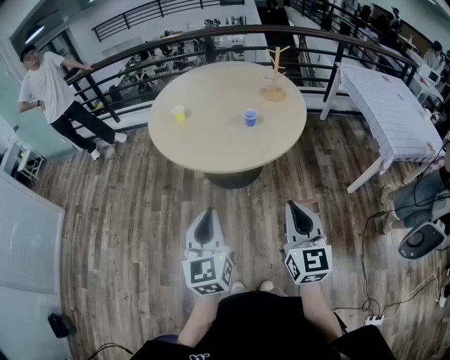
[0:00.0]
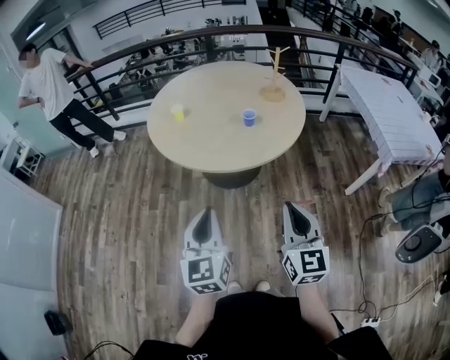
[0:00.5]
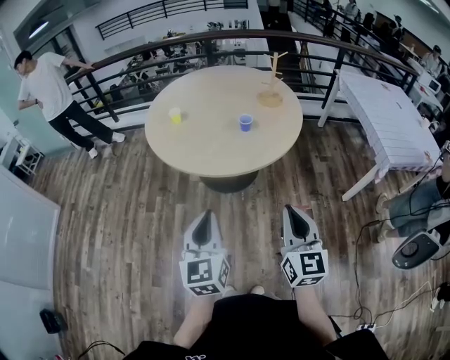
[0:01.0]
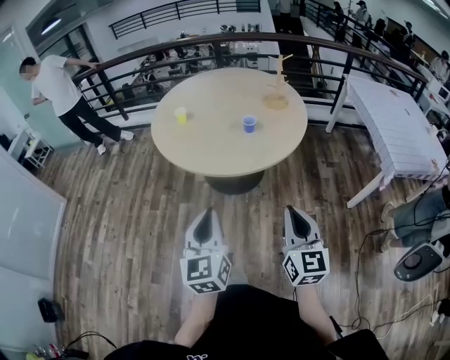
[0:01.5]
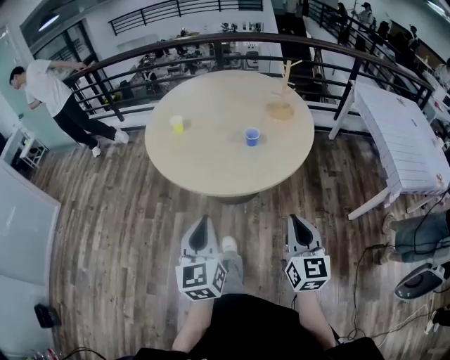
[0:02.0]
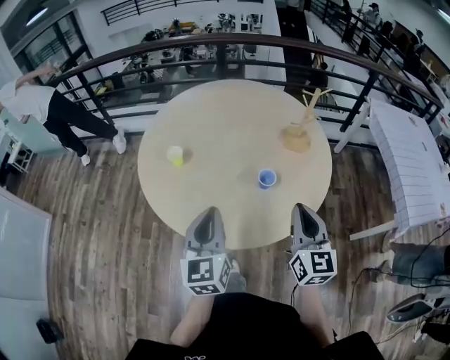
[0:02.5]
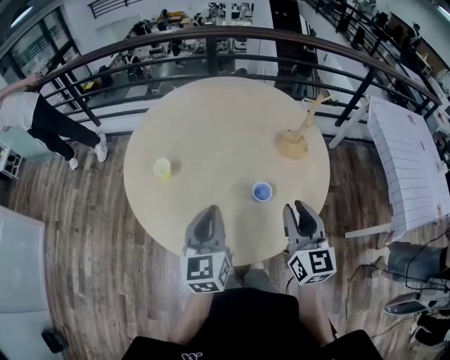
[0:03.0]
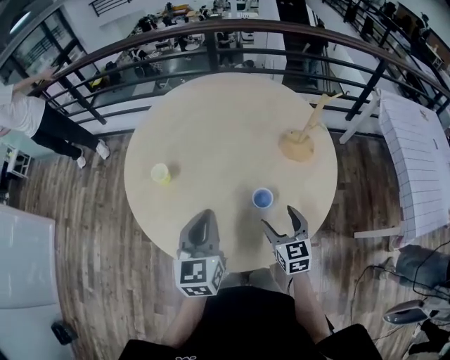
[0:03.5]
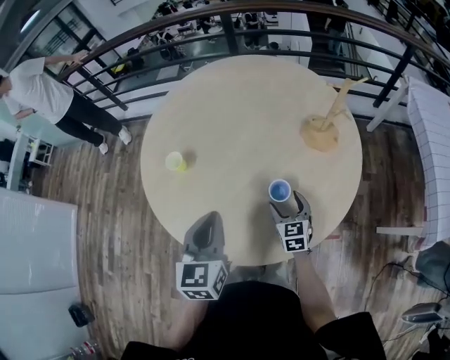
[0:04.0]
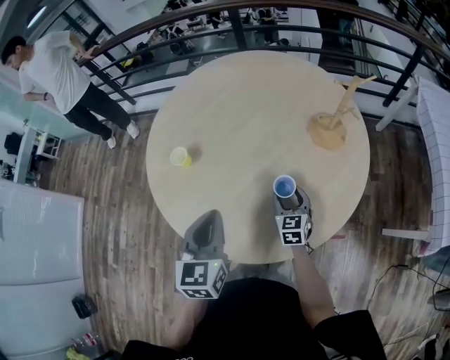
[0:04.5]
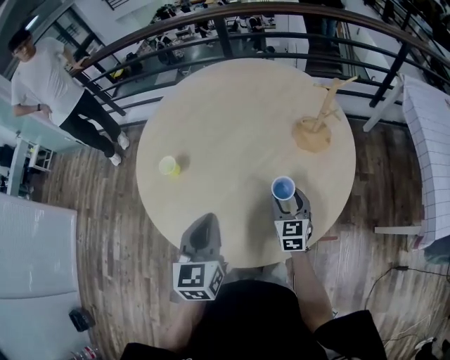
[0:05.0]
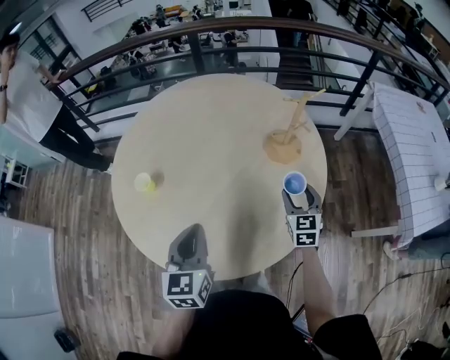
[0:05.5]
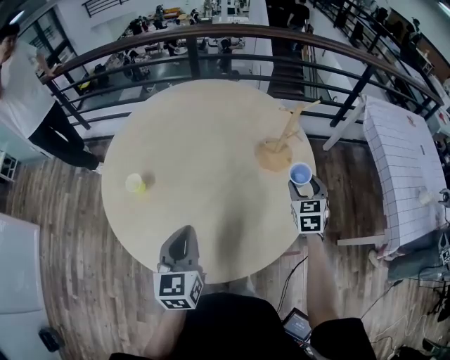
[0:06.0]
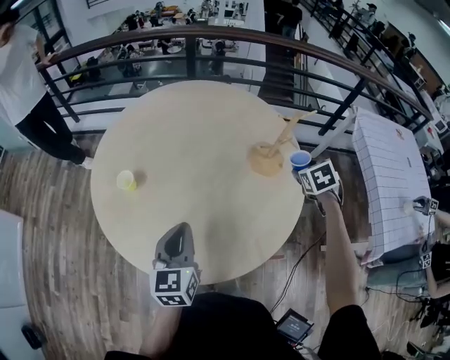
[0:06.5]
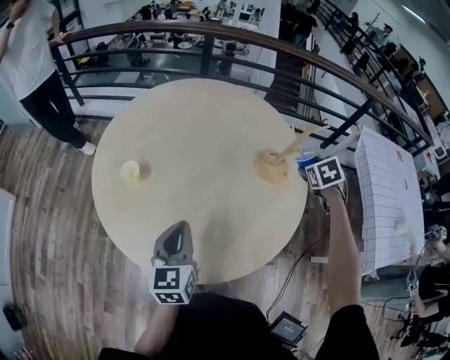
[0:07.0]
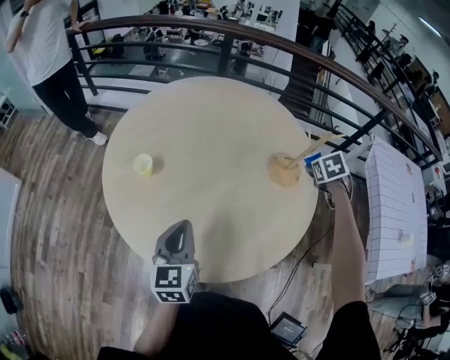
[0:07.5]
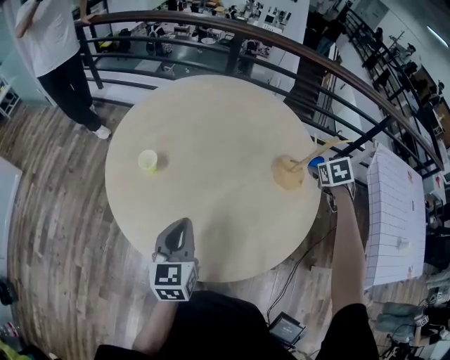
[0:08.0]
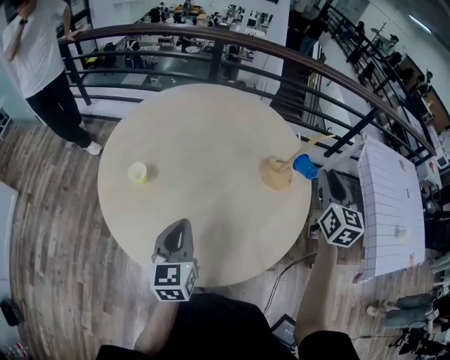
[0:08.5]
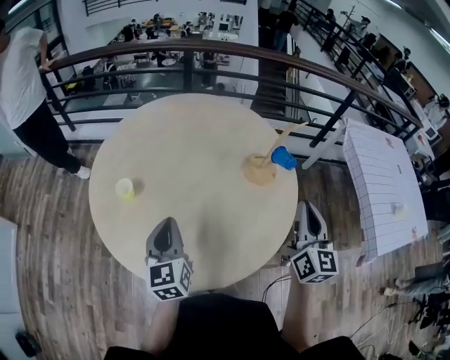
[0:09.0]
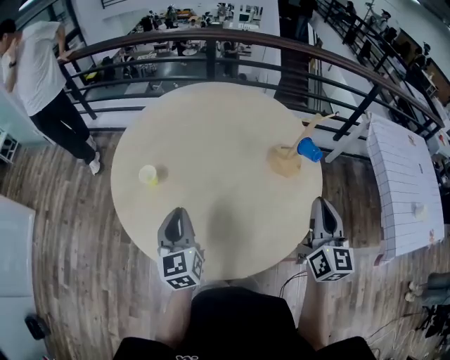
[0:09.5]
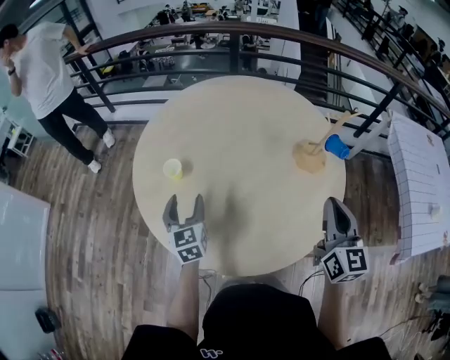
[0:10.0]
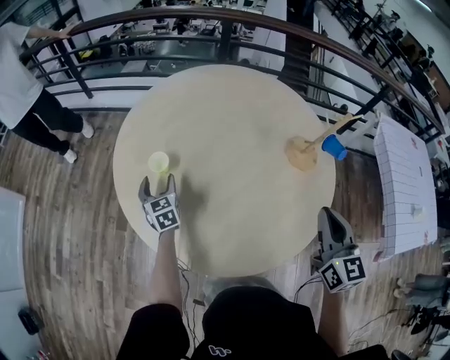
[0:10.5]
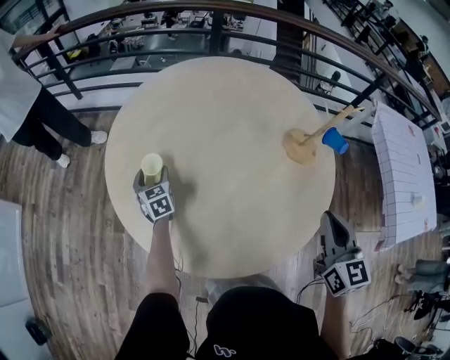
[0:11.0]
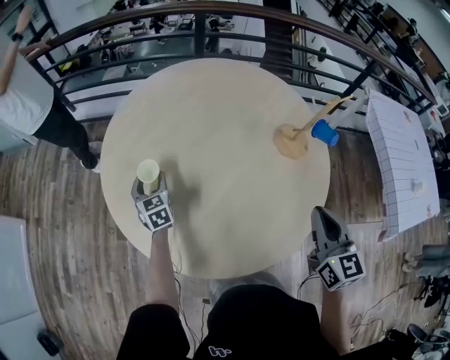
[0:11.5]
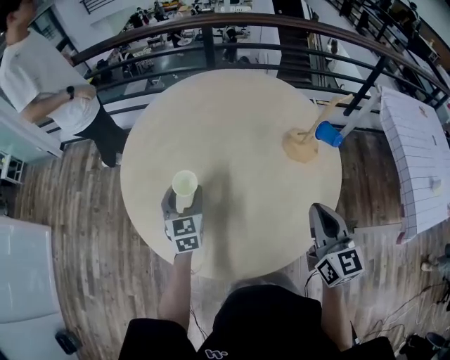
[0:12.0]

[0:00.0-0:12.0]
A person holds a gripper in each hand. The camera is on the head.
0:00.0 to 0:02.0: The right gripper goes about 15 cm forward, to the right and downward, while the left gripper is displaced forward by some 10 cm.
0:02.0 to 0:04.0: The right gripper goes some 50 cm forward and downward, changes its angle by roughly 30 degrees, and opens; the left gripper is displaced forward by about 40 cm.
0:04.0 to 0:06.0: The right gripper shifts roughly 25 cm to the right, upward and forward, and turns by about 20 degrees.
0:06.0 to 0:08.0: The left gripper moves to the left, roughly 5 cm. Meanwhile the right gripper heads forward, covering roughly 15 cm, and rotates approximately 30 degrees.
0:08.0 to 0:10.0: The left gripper is displaced to the left, forward and downward by roughly 15 cm, and opens up. The right gripper goes about 30 cm backward, to the left and upward, tilts its fingers roughly 50 degrees upward, and closes up.
0:10.0 to 0:12.0: The left gripper heads forward, covering about 5 cm.

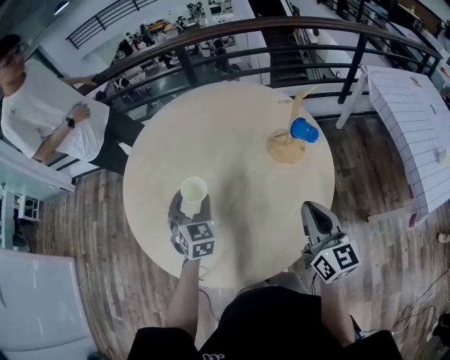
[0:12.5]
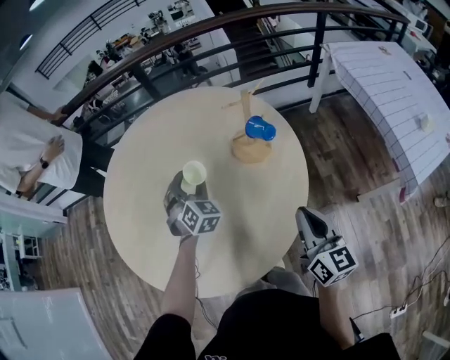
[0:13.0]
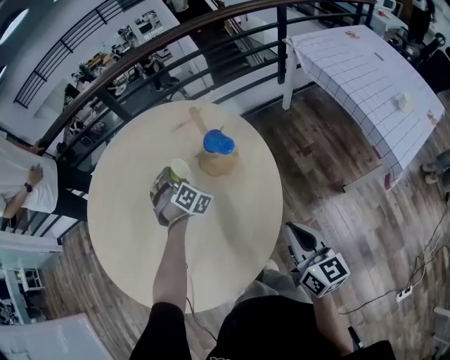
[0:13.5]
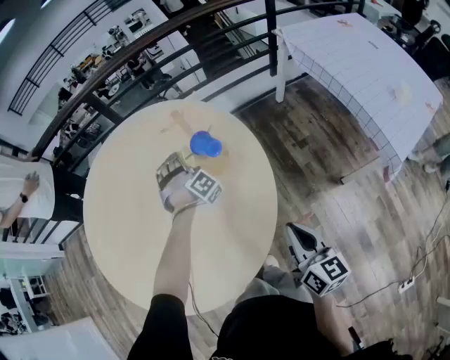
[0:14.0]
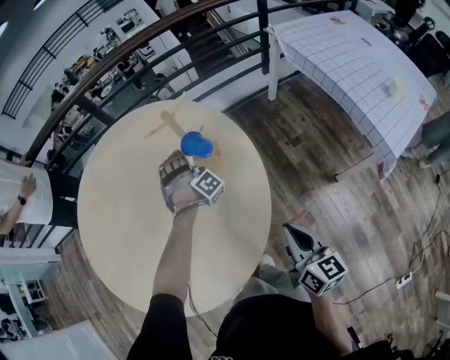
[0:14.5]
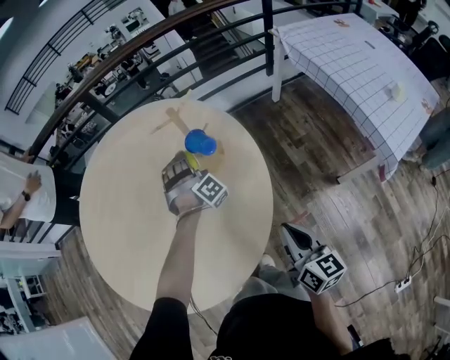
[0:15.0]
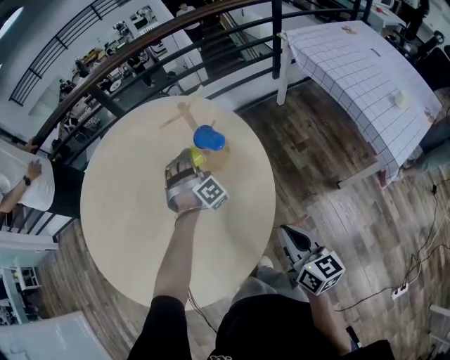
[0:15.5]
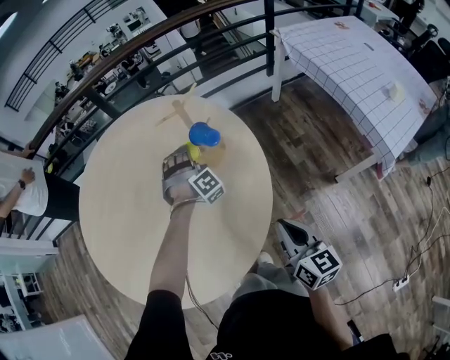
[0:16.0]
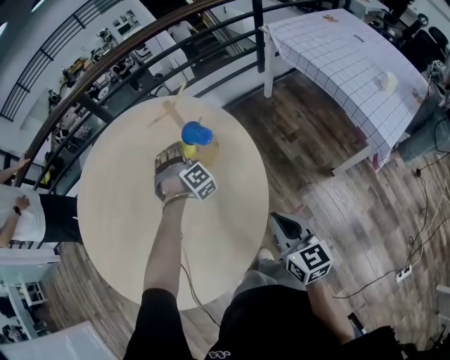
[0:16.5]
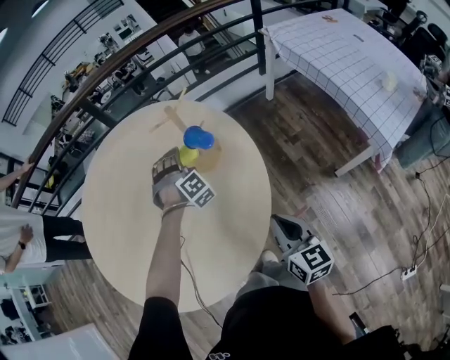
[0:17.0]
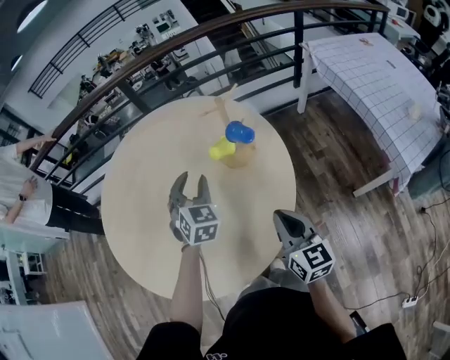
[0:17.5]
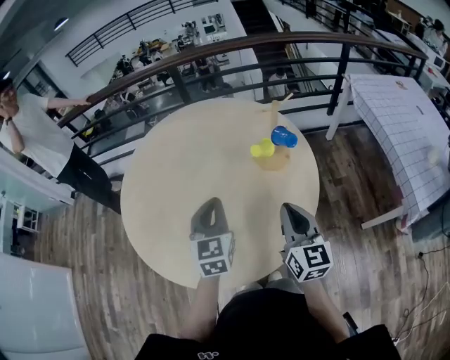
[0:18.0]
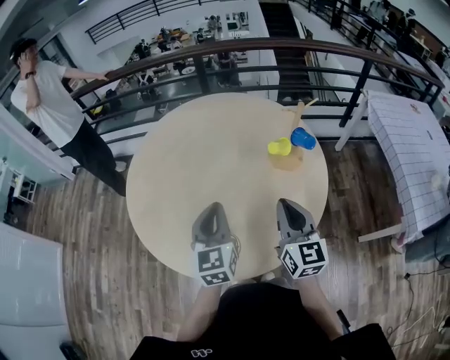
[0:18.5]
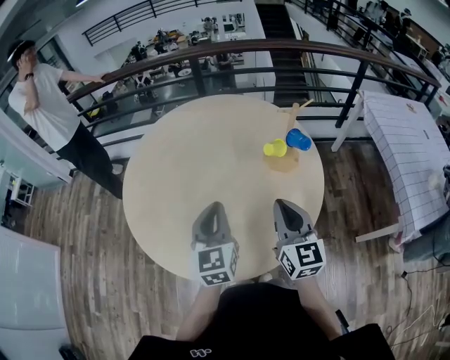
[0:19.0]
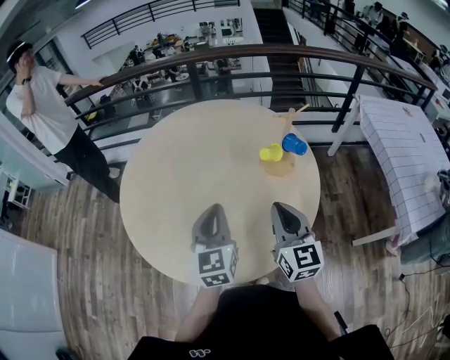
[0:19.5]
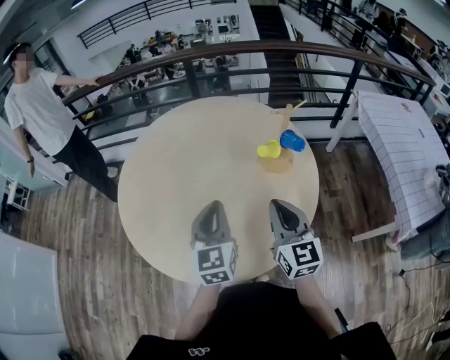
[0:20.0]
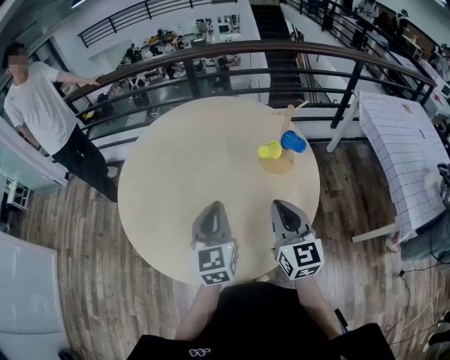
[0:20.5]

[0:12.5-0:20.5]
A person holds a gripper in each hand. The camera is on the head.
0:12.5 to 0:14.5: The left gripper heads to the right and forward, covering approximately 35 cm, and rotates around the line of its fingers by some 80 degrees, clockwise from behind; the right gripper moves to the right, backward and downward, approximately 20 cm, and changes its angle by roughly 20 degrees.
0:14.5 to 0:16.5: The grippers stay close to where they were, moving slightly.
0:16.5 to 0:18.5: The left gripper moves backward, to the left and upward, about 40 cm, rolls counterclockwise, seen from behind, by approximately 100 degrees, and closes. Meanwhile the right gripper heads to the left and upward, covering approximately 20 cm, and swivels about 20 degrees.
0:18.5 to 0:20.5: The grippers make only small movements.

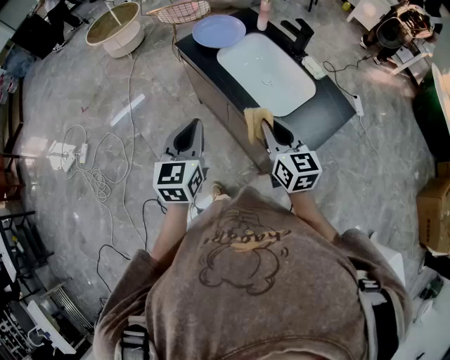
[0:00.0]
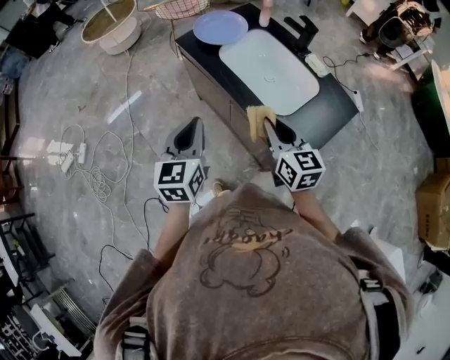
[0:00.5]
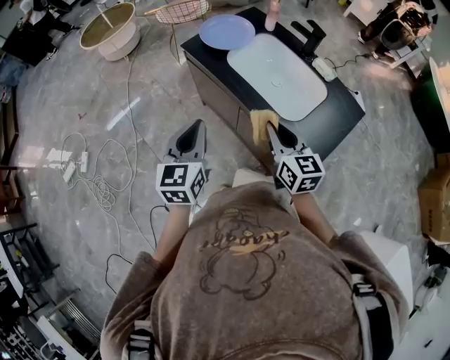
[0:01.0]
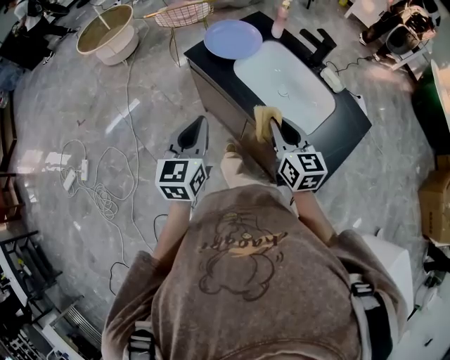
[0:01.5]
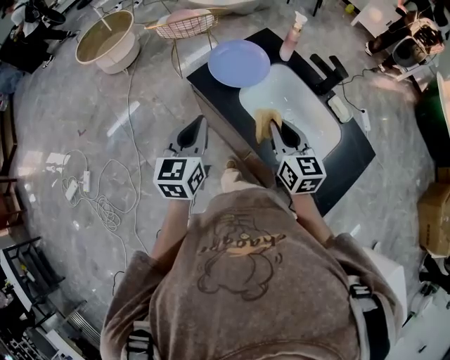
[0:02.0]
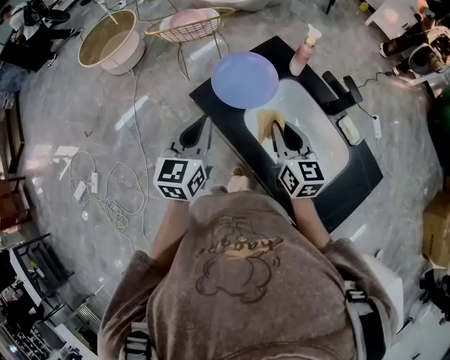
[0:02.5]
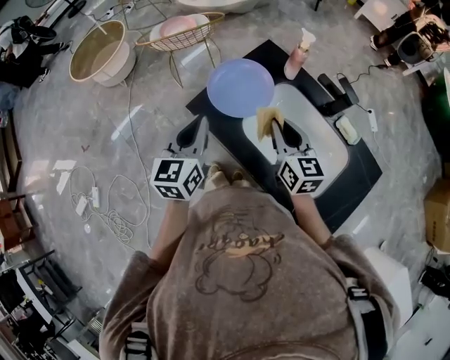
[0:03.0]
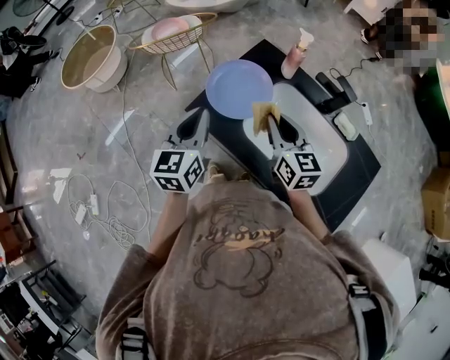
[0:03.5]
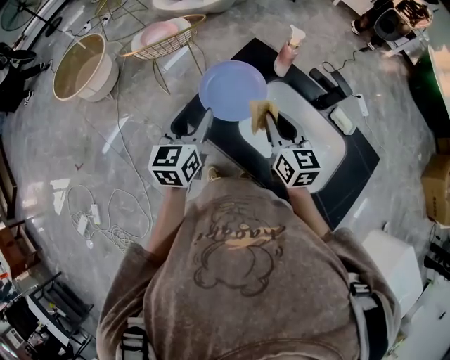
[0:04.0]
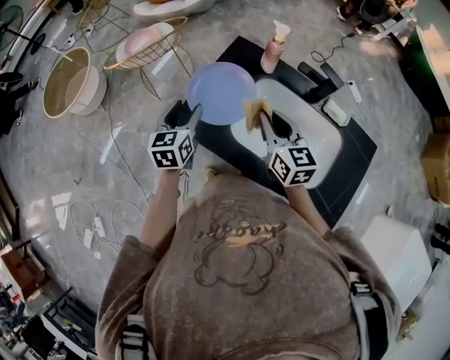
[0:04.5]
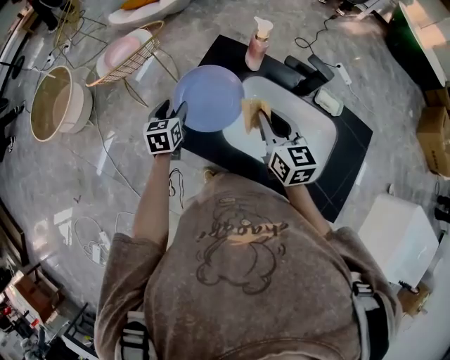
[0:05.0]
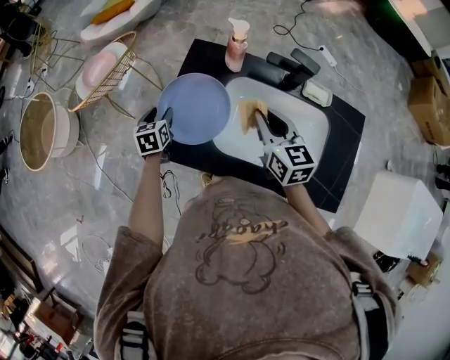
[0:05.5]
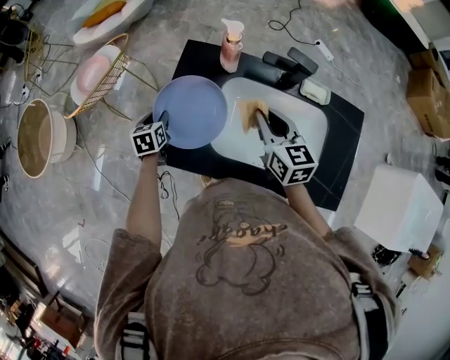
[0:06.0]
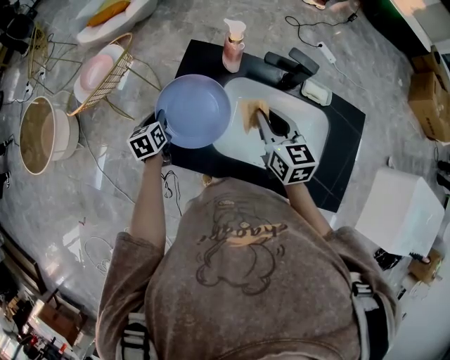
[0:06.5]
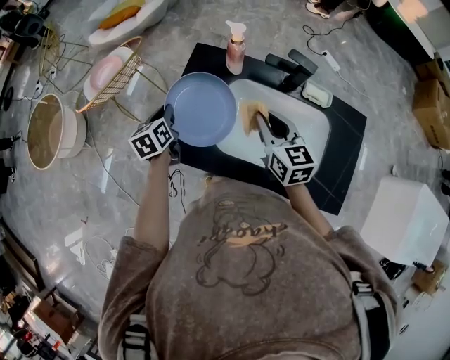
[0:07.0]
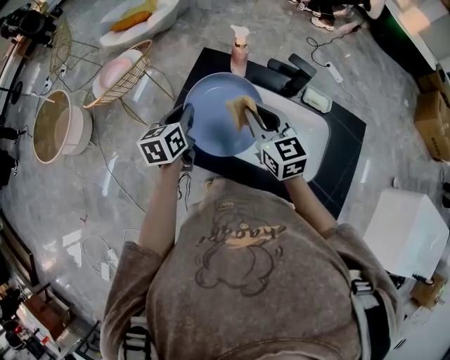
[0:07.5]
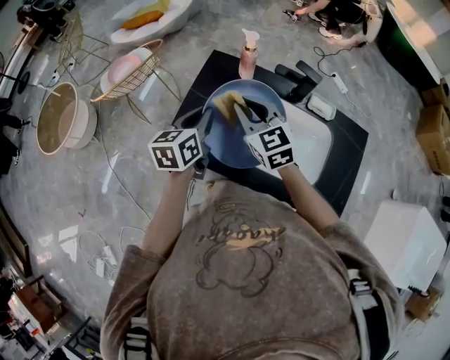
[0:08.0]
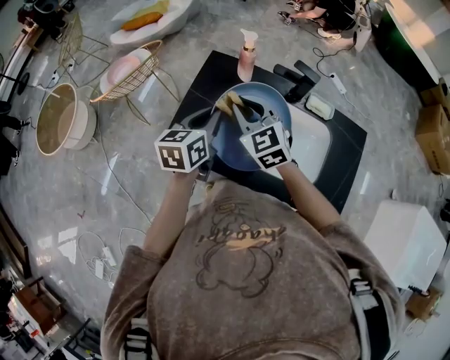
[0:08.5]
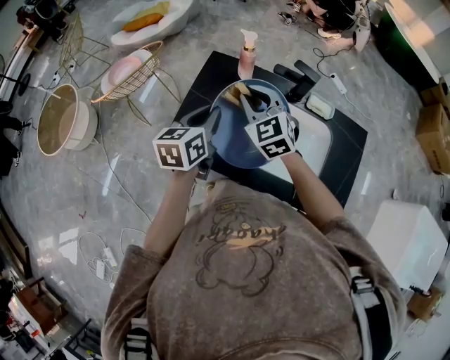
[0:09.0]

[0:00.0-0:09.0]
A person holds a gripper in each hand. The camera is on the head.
0:00.0 to 0:02.0: Both grippers travel together forward, some 25 cm.
0:02.0 to 0:04.5: The grippers both shift forward by about 25 cm. The left gripper opens its fingers.
0:04.5 to 0:07.0: The right gripper is displaced to the right by some 5 cm; the left gripper shifts about 10 cm forward and downward, and closes its fingers.
0:07.0 to 0:09.0: The left gripper moves upward, to the right and backward, some 20 cm. Meanwhile the right gripper goes approximately 10 cm to the left and upward, and swivels approximately 40 degrees.
